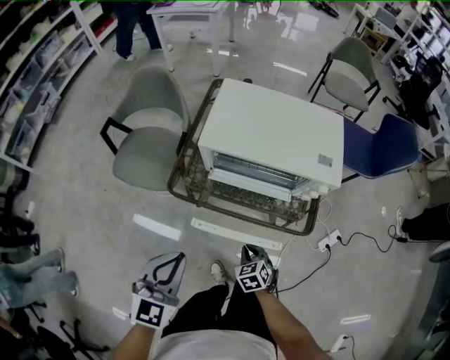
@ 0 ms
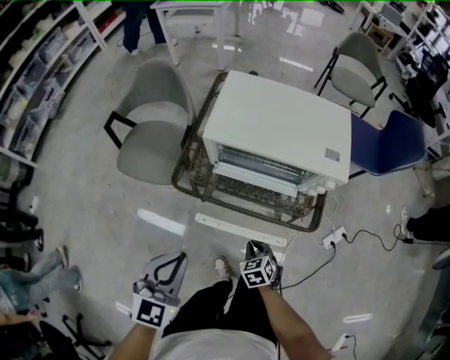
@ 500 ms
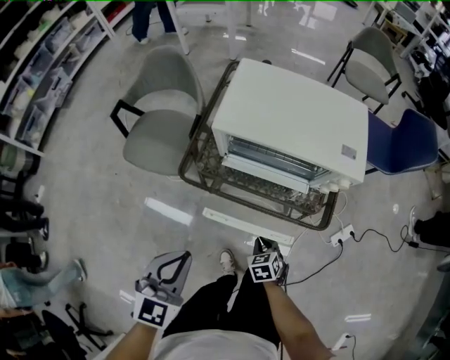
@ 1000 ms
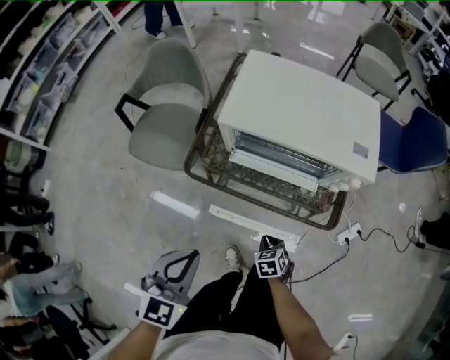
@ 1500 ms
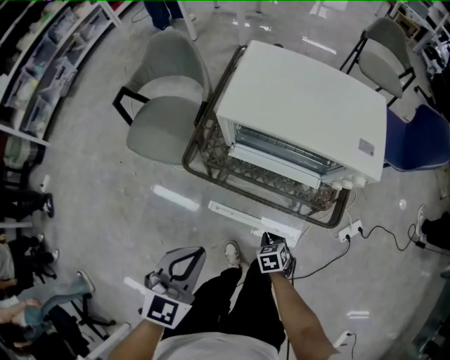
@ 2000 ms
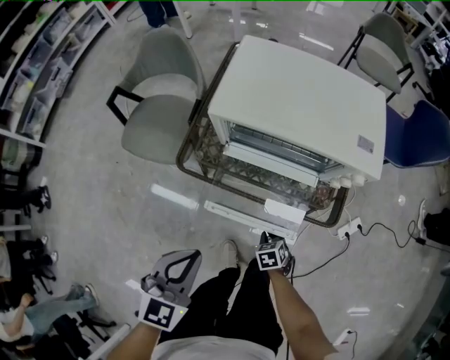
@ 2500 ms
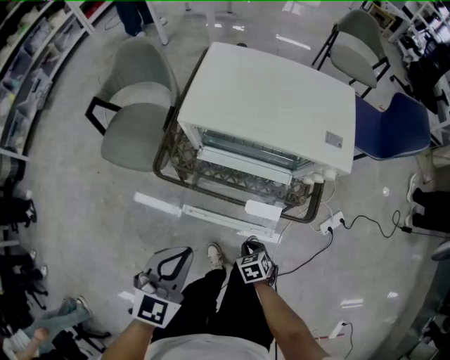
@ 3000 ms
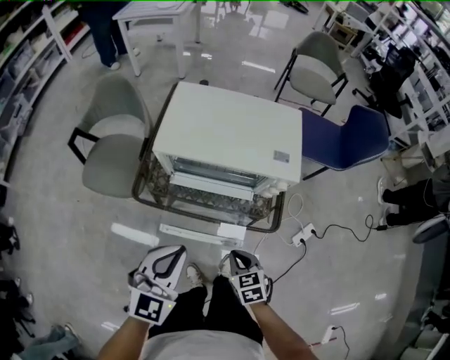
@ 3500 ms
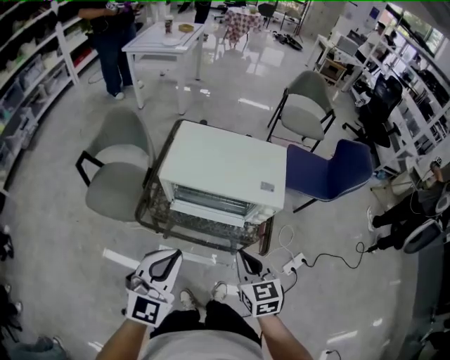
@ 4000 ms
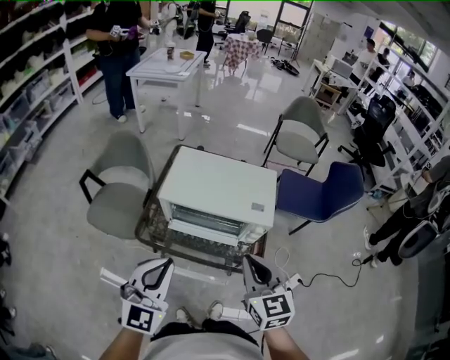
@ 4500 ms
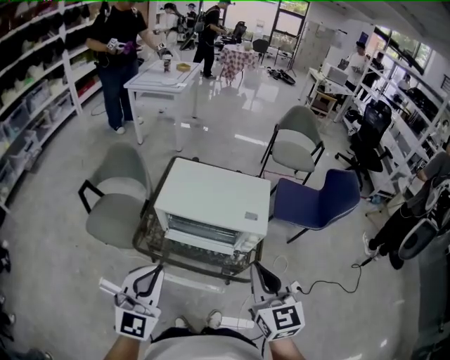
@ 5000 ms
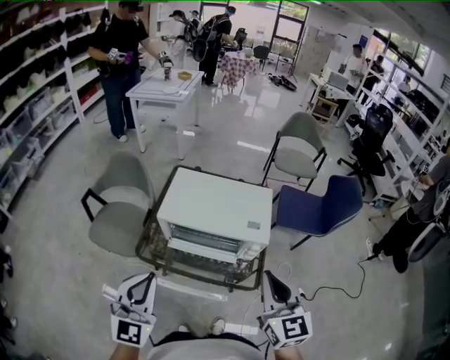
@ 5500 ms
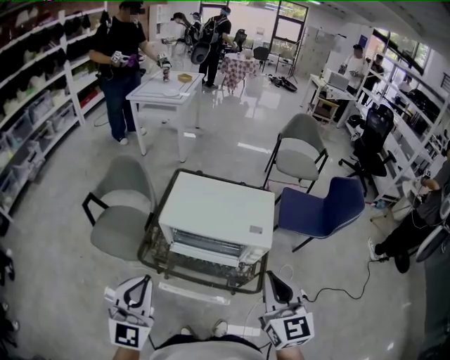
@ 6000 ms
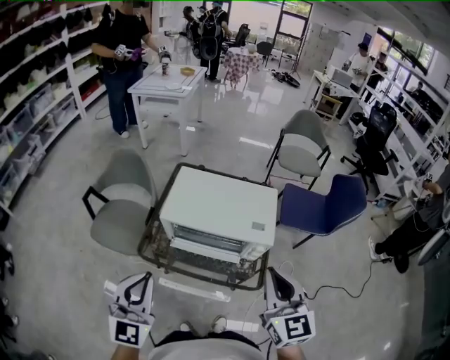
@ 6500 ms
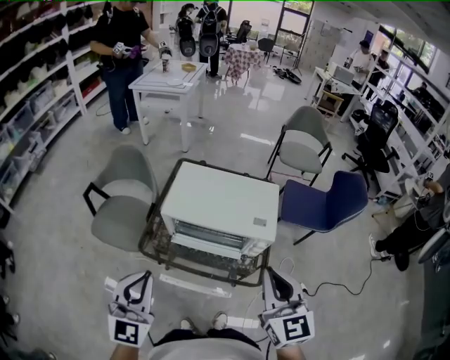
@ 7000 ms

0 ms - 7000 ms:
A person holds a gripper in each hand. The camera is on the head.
0 ms - 2000 ms: The right gripper heads downward, covering roughly 10 cm. Meanwhile the left gripper shifts by some 5 cm.
2000 ms - 3500 ms: The right gripper travels upward by about 20 cm. Meanwhile the left gripper goes about 10 cm to the right and upward.
3500 ms - 5000 ms: The left gripper moves upward, roughly 15 cm; the right gripper travels upward by about 35 cm, and angles its fingers upward, by about 40 degrees.
5000 ms - 7000 ms: The grippers stay close to where they were, moving slightly.

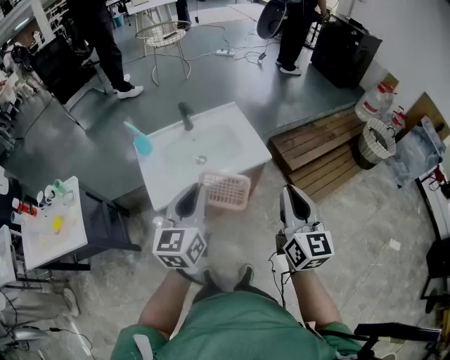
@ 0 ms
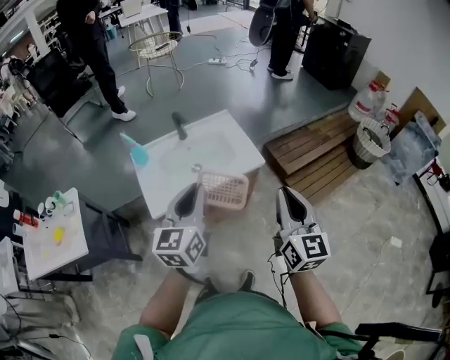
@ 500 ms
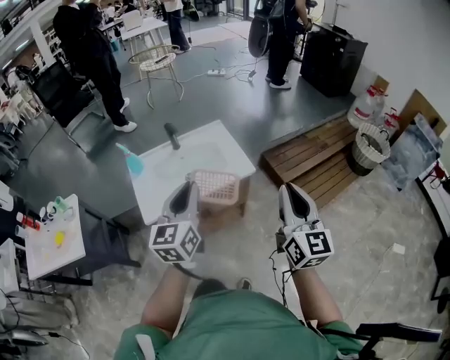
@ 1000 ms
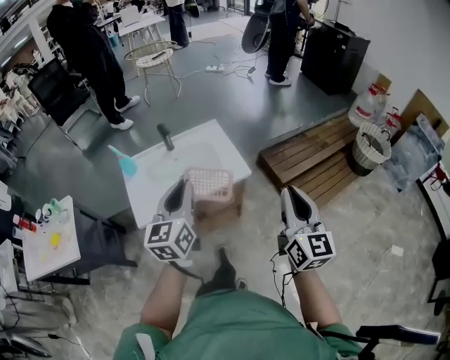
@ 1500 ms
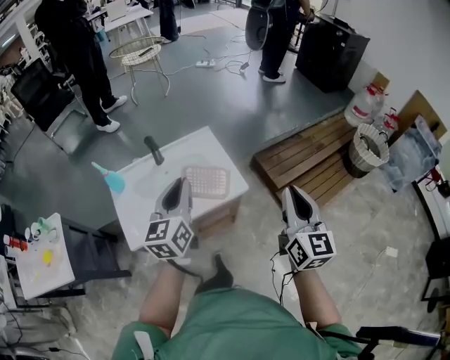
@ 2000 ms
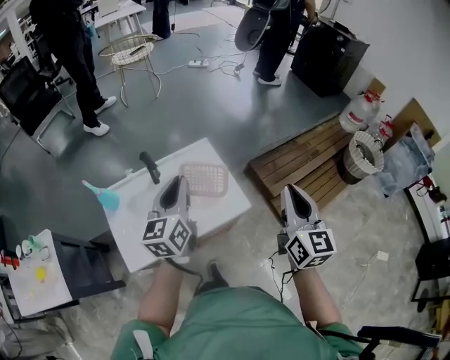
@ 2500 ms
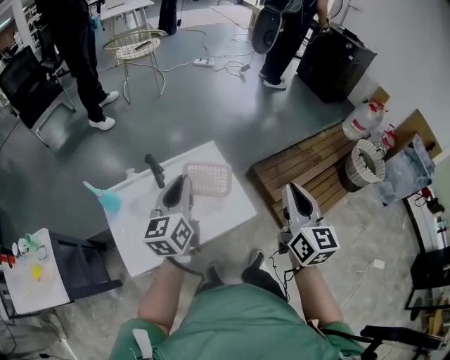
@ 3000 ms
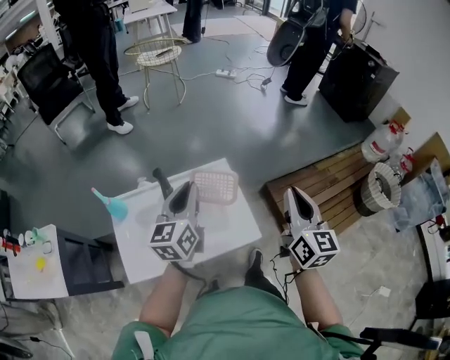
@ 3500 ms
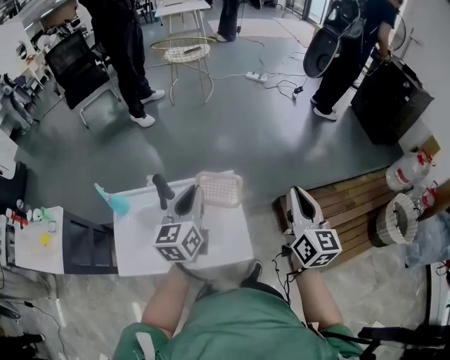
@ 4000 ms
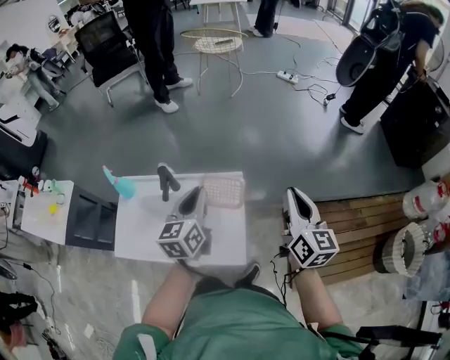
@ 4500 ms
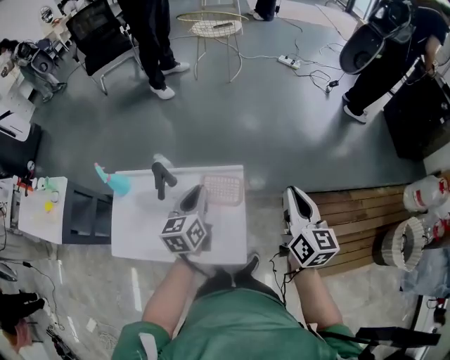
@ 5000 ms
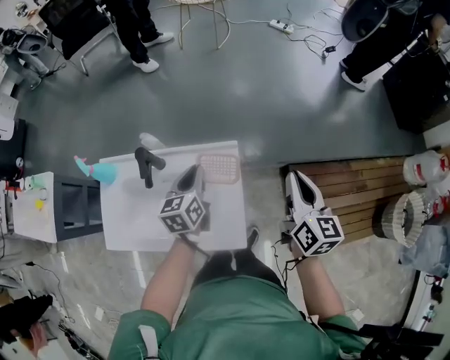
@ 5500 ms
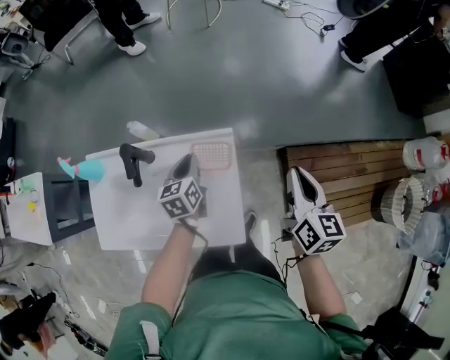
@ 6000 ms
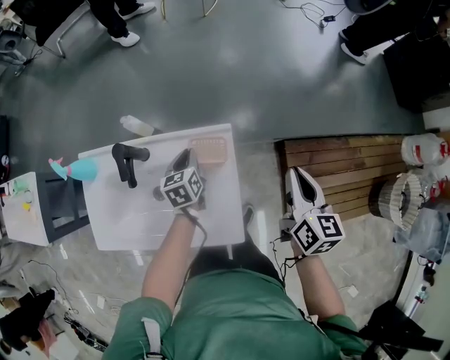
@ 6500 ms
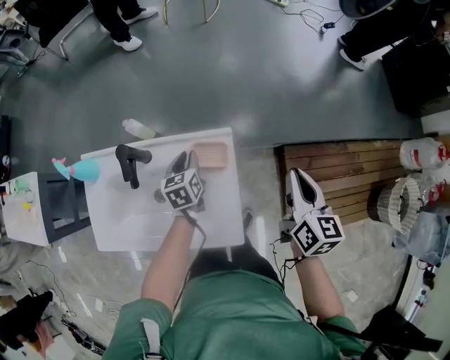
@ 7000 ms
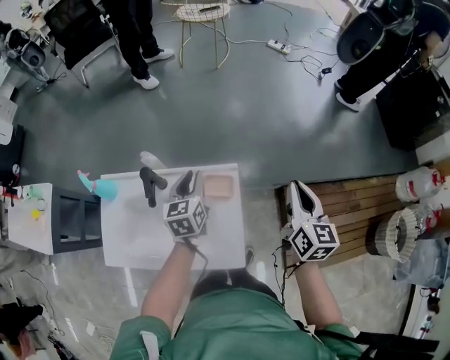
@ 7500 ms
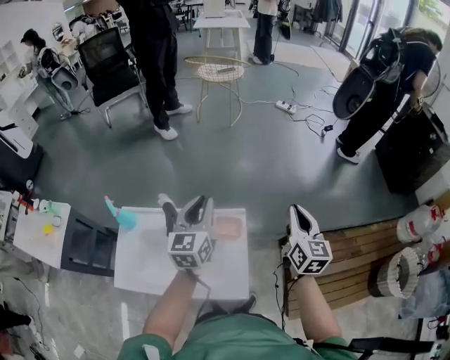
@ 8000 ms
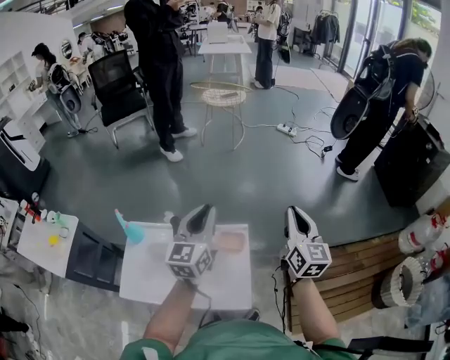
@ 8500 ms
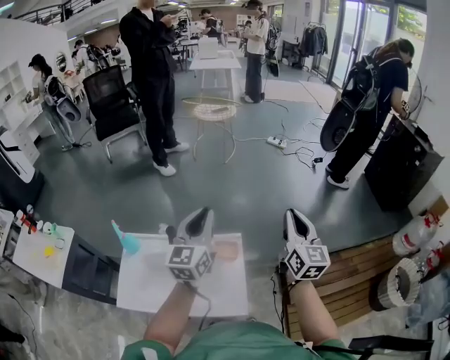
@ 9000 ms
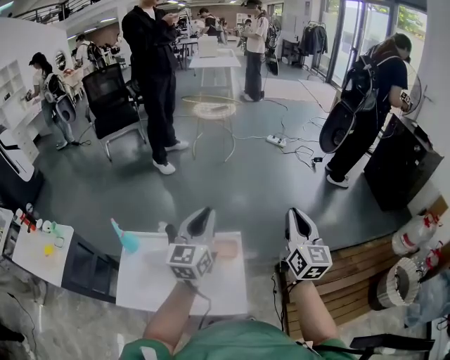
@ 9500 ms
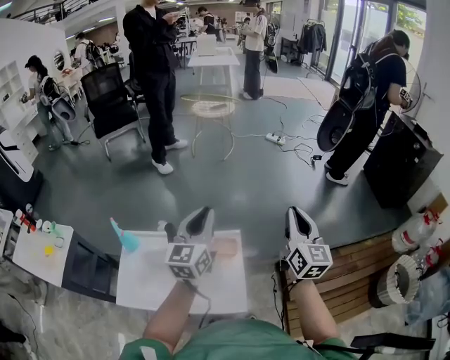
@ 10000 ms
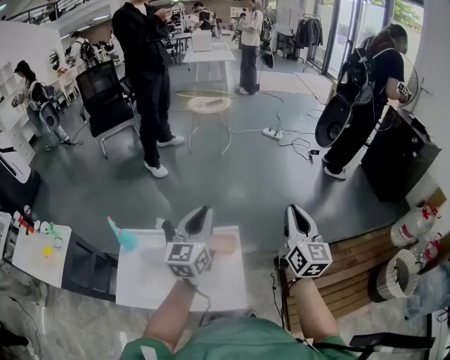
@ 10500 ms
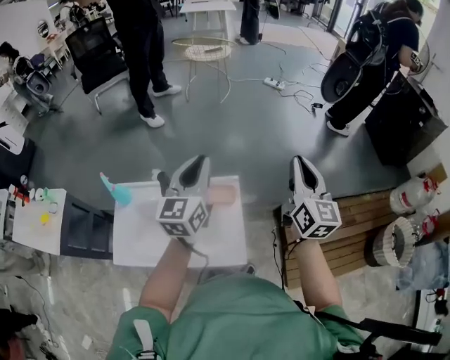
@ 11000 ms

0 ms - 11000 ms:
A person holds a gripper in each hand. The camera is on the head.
0 ms - 2000 ms: Both grippers move forward and to the right, some 20 cm.
2000 ms - 3500 ms: Both grippers move forward, some 25 cm.
3500 ms - 5500 ms: The left gripper is displaced downward and forward by some 25 cm, and swivels some 30 degrees, while the right gripper travels forward and downward by approximately 25 cm, and changes its angle by some 20 degrees.
5500 ms - 7500 ms: The left gripper reaches some 15 cm downward, then returns. The right gripper moves approximately 10 cm downward and comes back.
7500 ms - 9000 ms: Both grippers travel together upward, approximately 25 cm. The left gripper swivels roughly 30 degrees.
9000 ms - 11000 ms: The grippers move only a little.

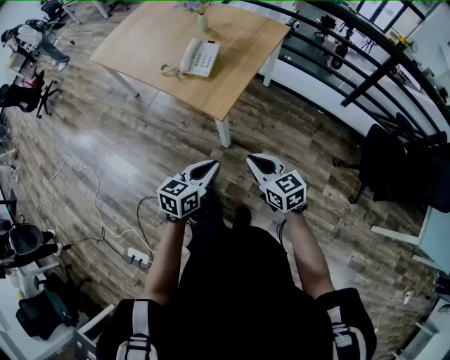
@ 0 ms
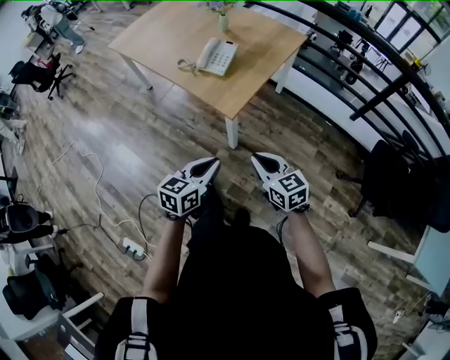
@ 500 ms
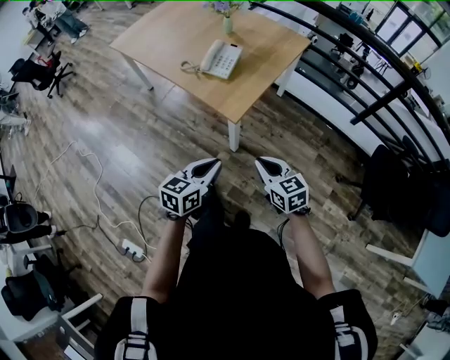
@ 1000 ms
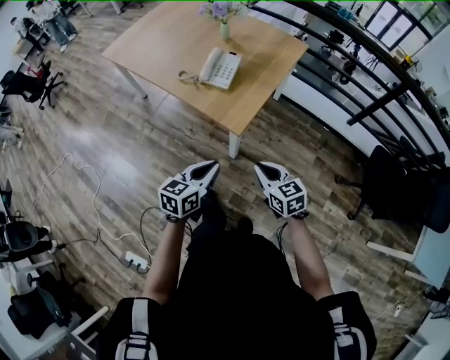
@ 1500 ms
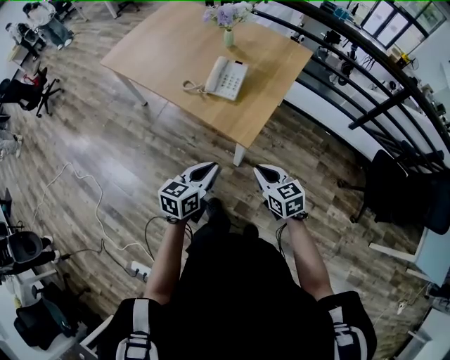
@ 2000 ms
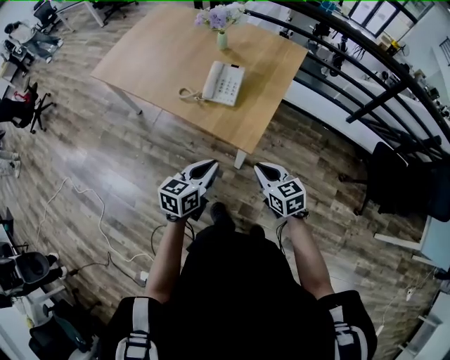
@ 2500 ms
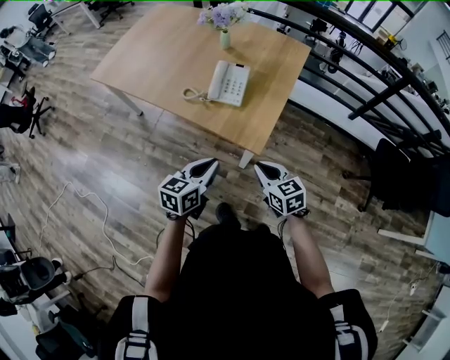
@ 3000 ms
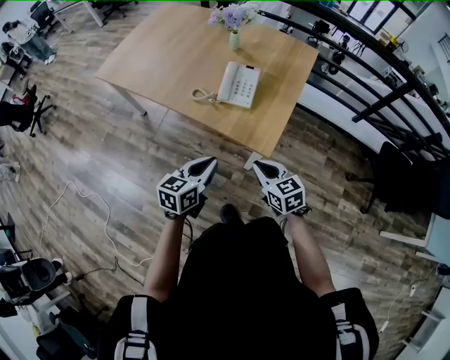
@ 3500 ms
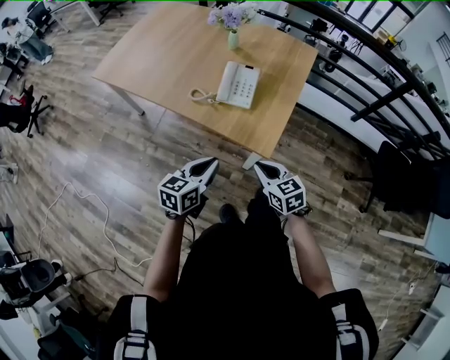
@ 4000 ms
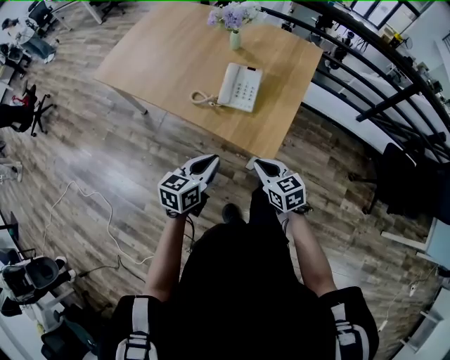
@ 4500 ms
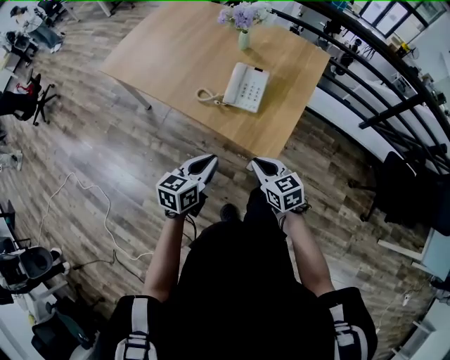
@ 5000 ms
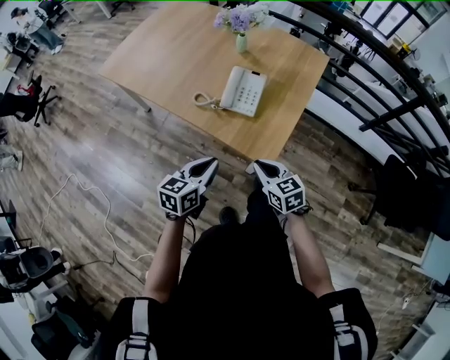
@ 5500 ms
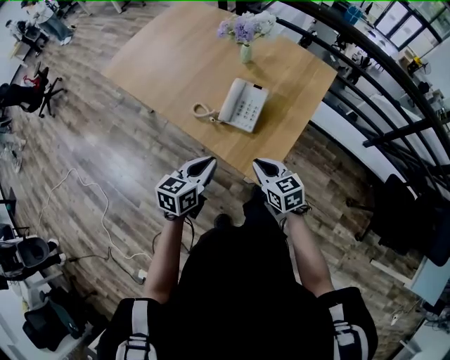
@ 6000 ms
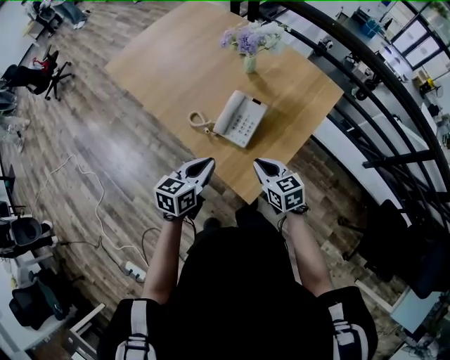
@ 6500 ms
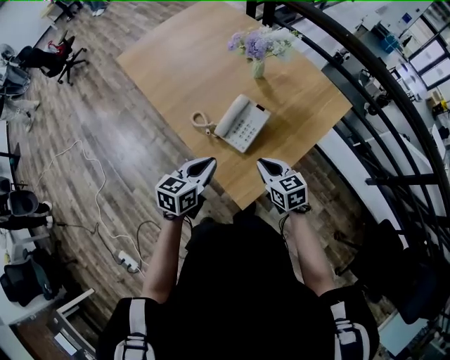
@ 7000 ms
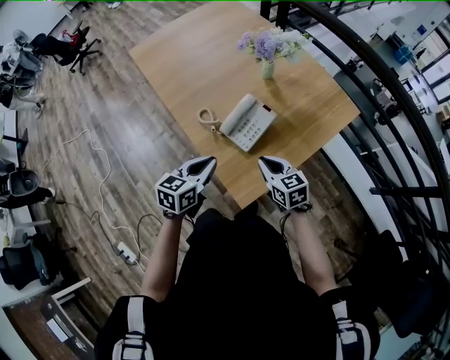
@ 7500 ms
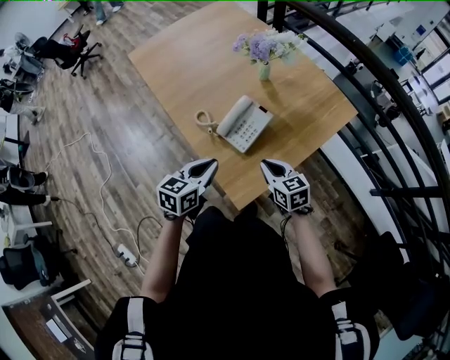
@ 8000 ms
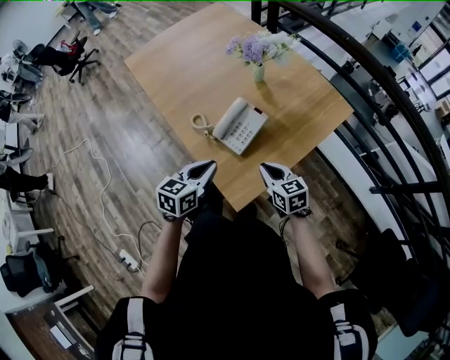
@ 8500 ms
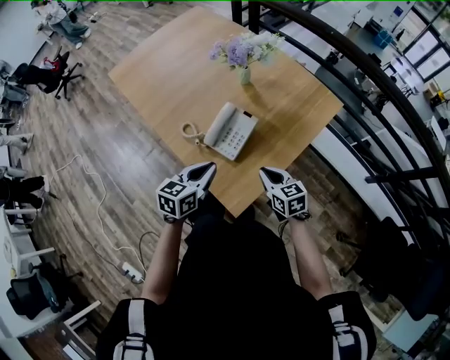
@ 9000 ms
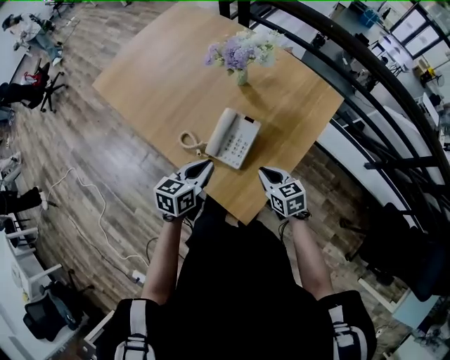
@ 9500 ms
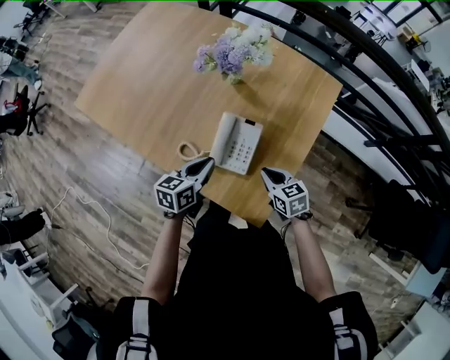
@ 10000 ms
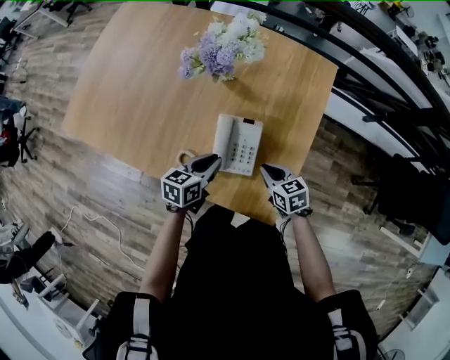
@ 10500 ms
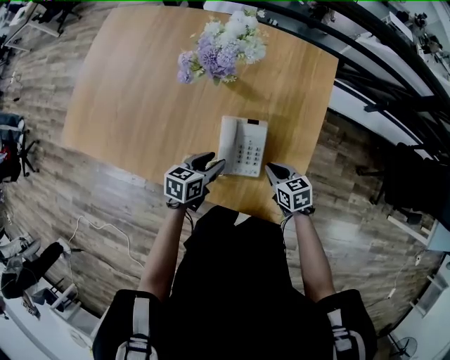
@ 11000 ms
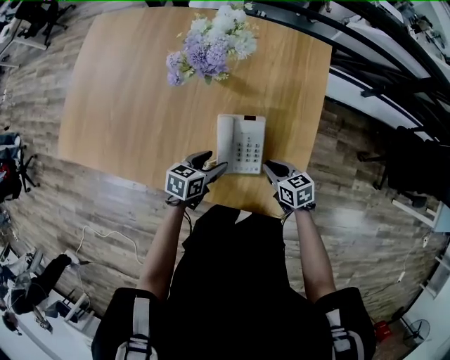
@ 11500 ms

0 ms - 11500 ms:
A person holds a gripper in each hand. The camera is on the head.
0 ms - 2000 ms: The left gripper travels to the left and forward by about 15 cm; the right gripper shifts approximately 15 cm forward and to the left.
2000 ms - 4000 ms: Both grippers travel together to the left and forward, roughly 15 cm.
4000 ms - 6000 ms: The two grippers go about 10 cm forward.
6000 ms - 7500 ms: The left gripper travels forward and to the right by some 10 cm, while the right gripper heads forward and to the right, covering about 15 cm.
7500 ms - 9500 ms: The left gripper goes approximately 10 cm forward; the right gripper changes place by about 5 cm.
9500 ms - 11500 ms: The left gripper travels downward by some 15 cm, rotates roughly 40 degrees, and opens. The right gripper shifts roughly 10 cm downward, and rotates approximately 30 degrees.
